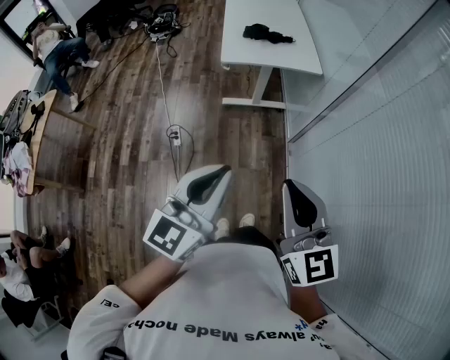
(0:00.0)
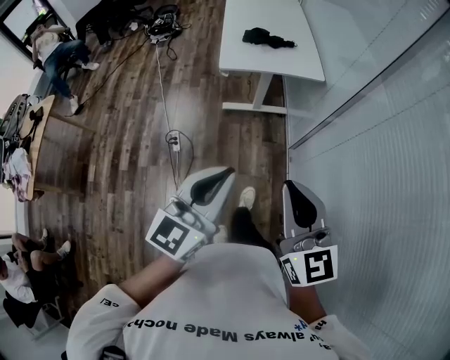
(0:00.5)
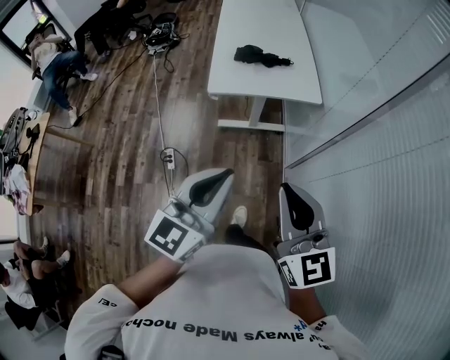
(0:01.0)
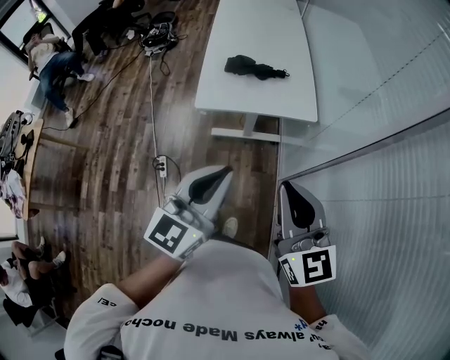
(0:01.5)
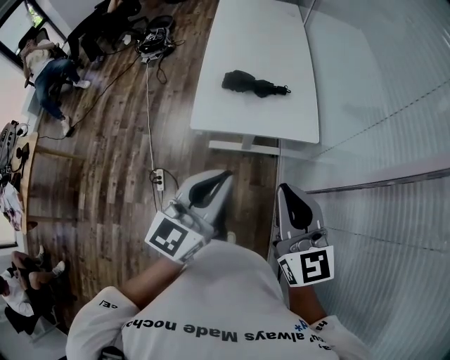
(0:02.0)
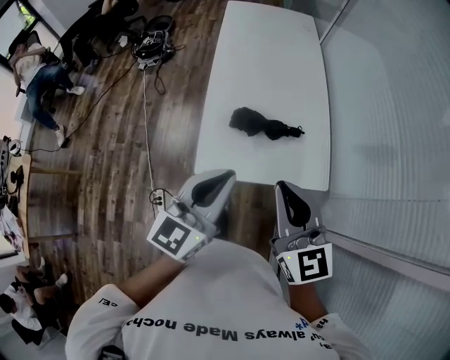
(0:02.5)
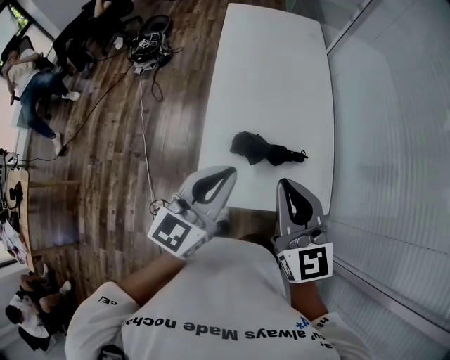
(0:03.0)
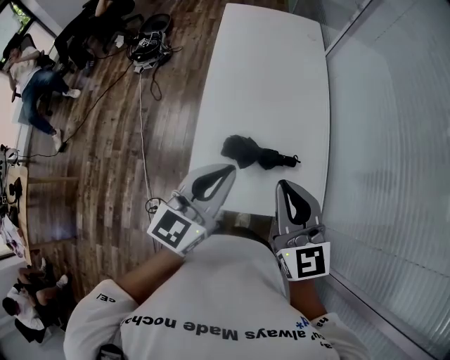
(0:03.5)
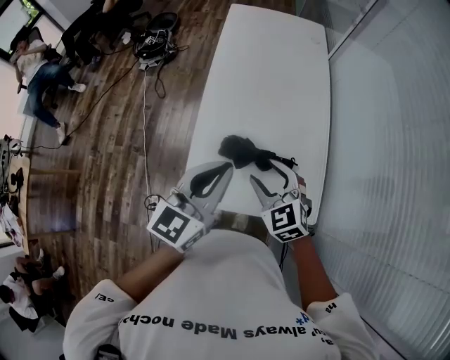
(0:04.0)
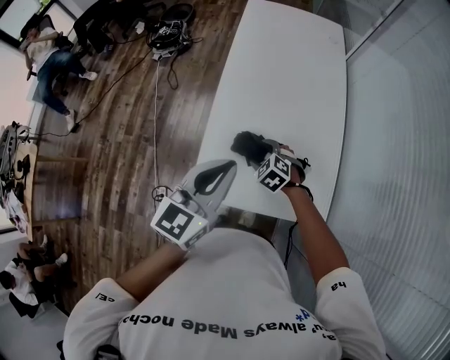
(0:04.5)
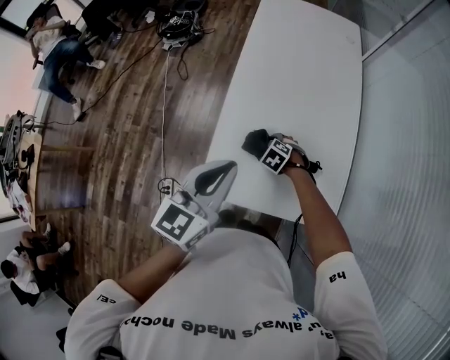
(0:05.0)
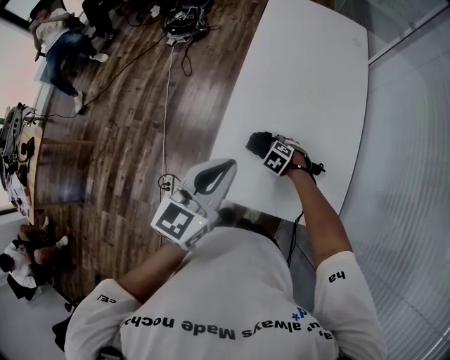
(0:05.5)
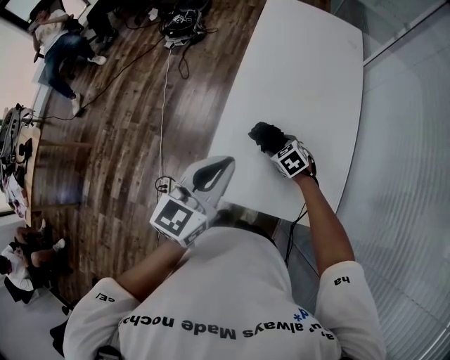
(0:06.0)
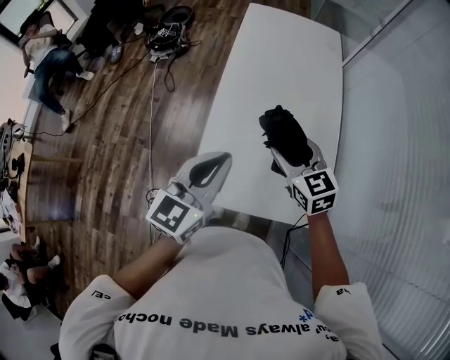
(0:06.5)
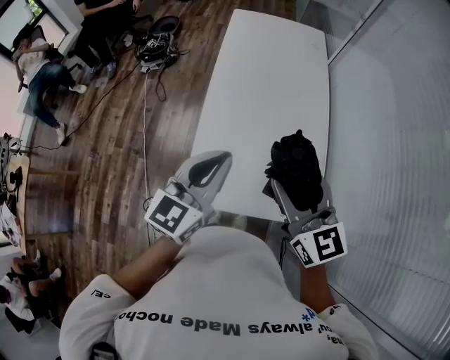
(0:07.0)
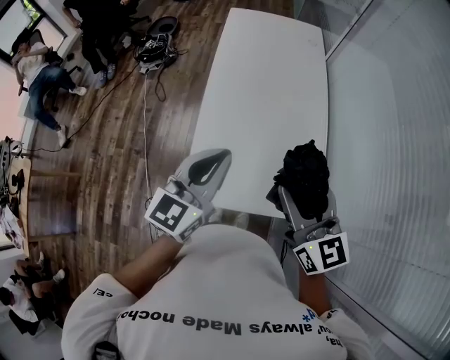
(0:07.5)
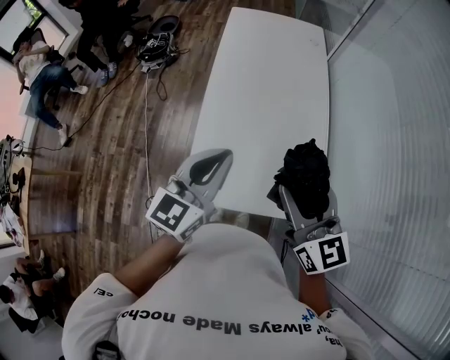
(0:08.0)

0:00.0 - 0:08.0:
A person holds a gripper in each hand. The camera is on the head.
0:00.0 - 0:02.0: Both grippers are carried forward, some 60 cm.
0:02.0 - 0:04.0: The two grippers travel together, forward, roughly 50 cm. The right gripper rotates about 40 degrees, and opens.
0:04.0 - 0:06.0: The right gripper heads downward, covering about 20 cm, and changes its angle by approximately 30 degrees. The left gripper ends up approximately 10 cm from where it was.
0:06.0 - 0:08.0: The left gripper moves to the right and upward, approximately 10 cm. Meanwhile the right gripper heads upward and backward, covering some 40 cm, and points its fingers some 50 degrees further upward.

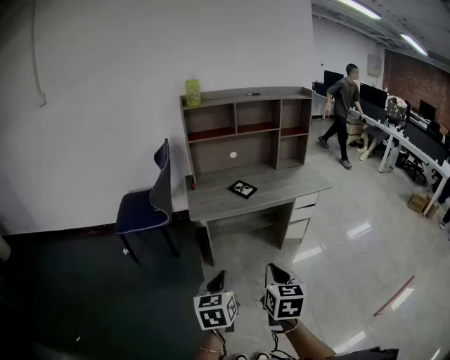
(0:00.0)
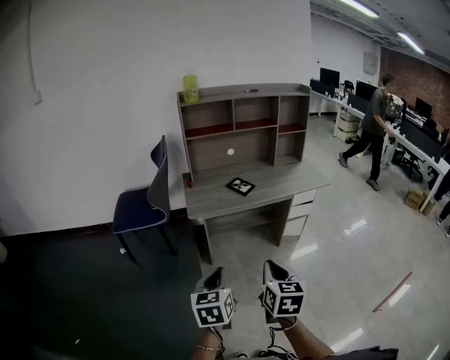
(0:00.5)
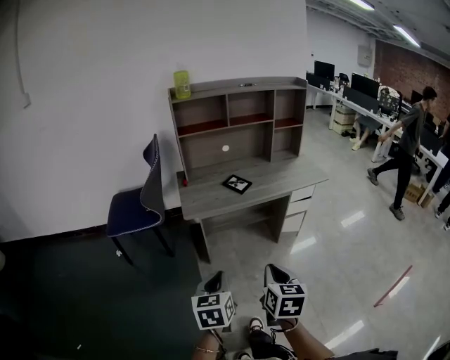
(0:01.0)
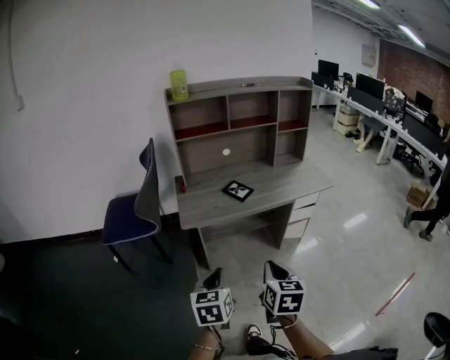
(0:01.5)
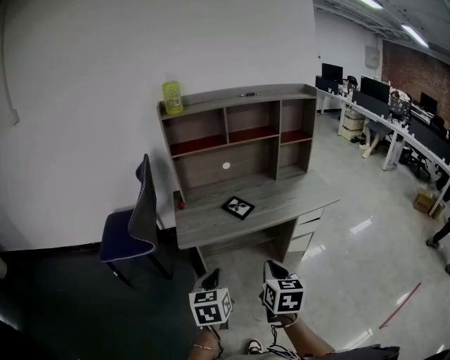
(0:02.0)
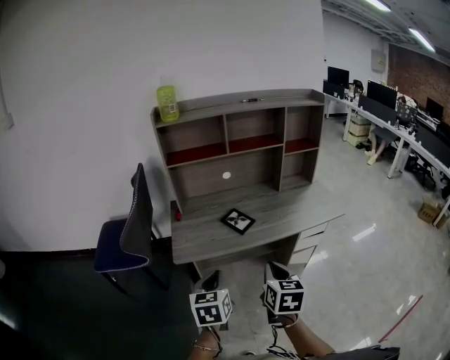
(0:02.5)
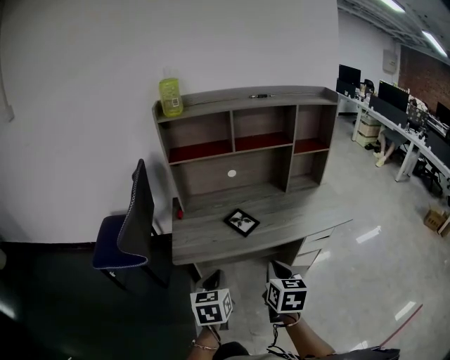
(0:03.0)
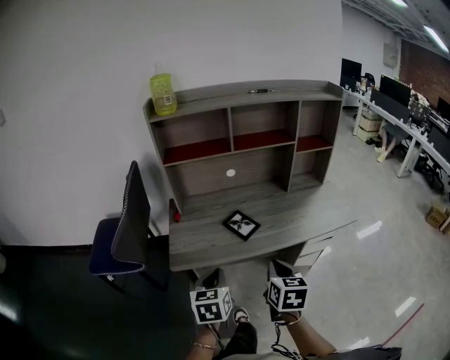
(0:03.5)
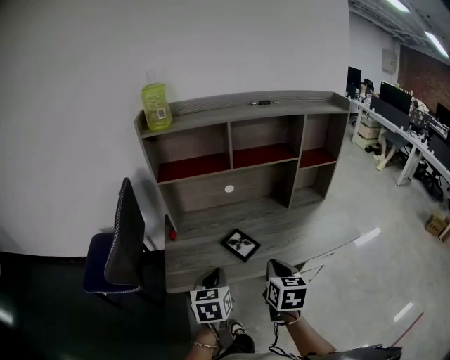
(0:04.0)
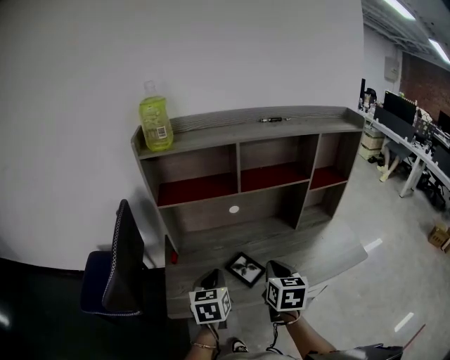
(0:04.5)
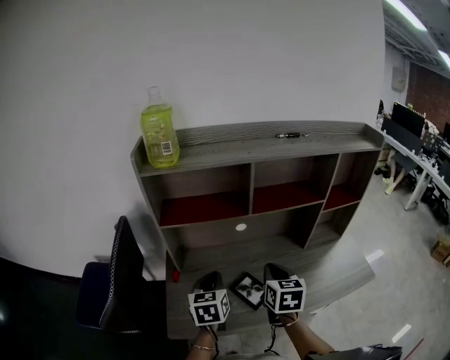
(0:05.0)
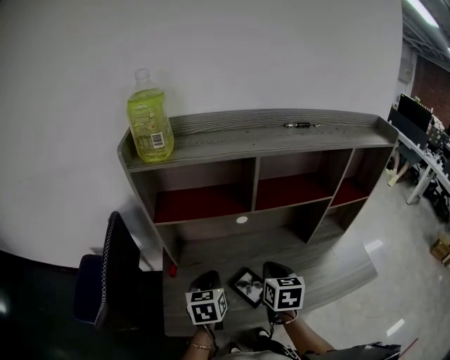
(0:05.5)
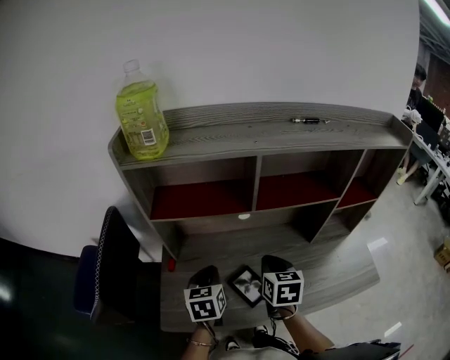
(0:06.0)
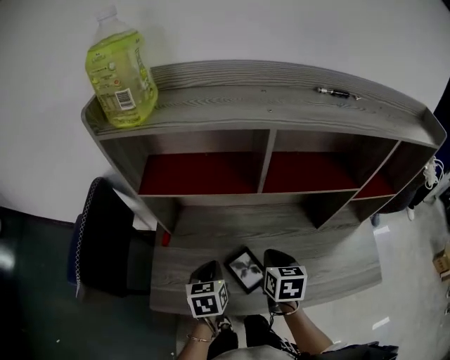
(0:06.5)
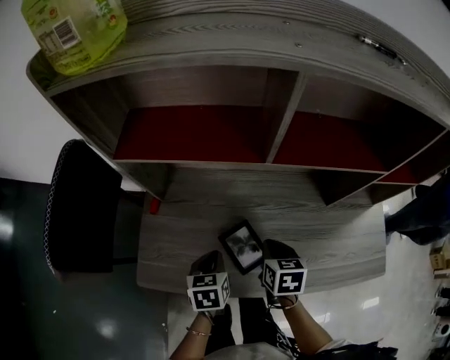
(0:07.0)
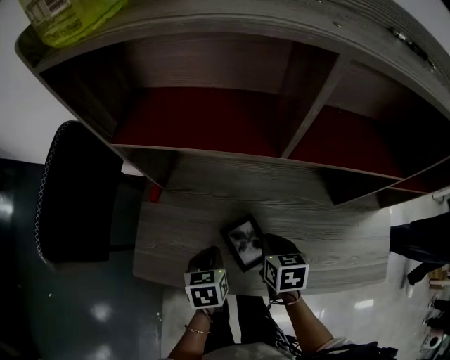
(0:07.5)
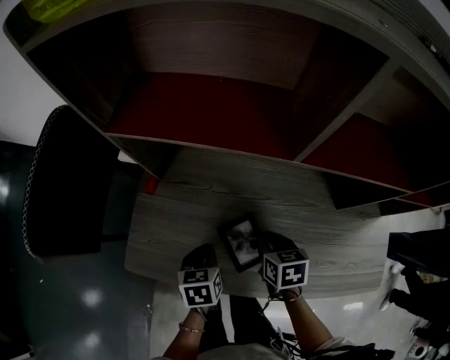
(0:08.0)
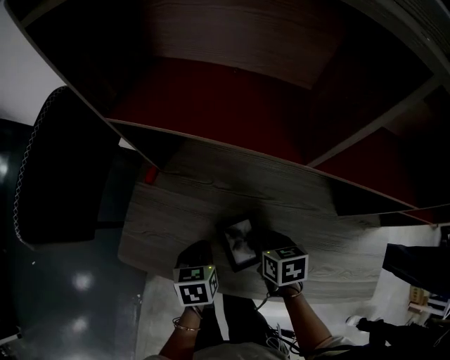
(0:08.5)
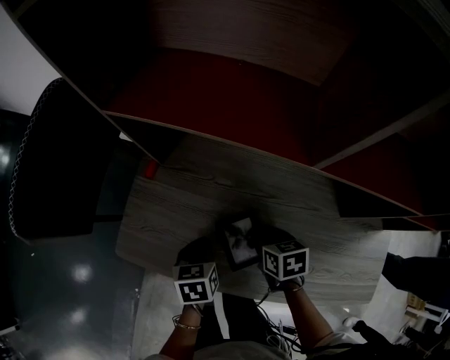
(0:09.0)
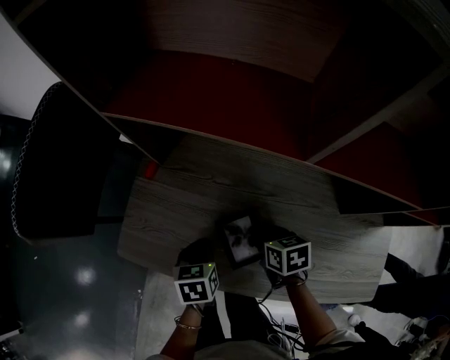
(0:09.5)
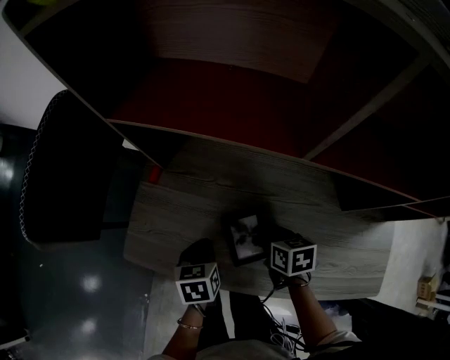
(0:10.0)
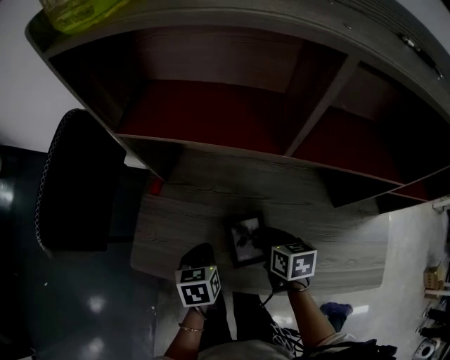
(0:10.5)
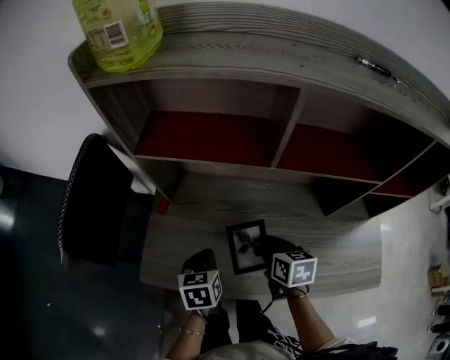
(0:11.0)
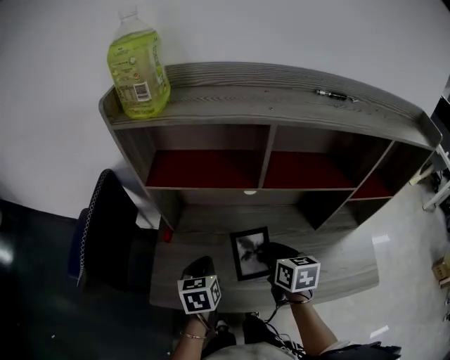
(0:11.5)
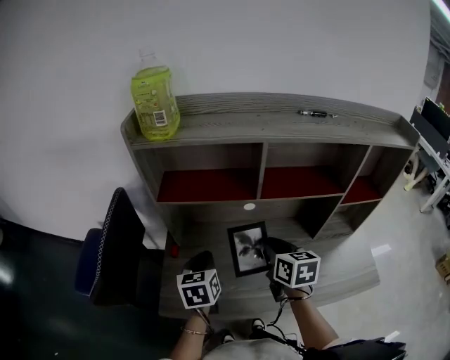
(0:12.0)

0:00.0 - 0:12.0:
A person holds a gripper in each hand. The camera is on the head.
0:00.0 - 0:02.0: Both grippers move forward, approximately 20 cm.
0:02.0 - 0:04.0: Both grippers travel together forward, roughly 25 cm.
0:04.0 - 0:06.0: Both grippers move forward, about 25 cm.
0:06.0 - 0:08.0: Both grippers travel together downward, some 20 cm. The left gripper turns by approximately 30 degrees, while the right gripper changes its angle by roughly 30 degrees.
0:08.0 - 0:10.0: There are only small adjustments of the grippers.
0:10.0 - 0:12.0: Both grippers move upward, about 25 cm. The left gripper turns by about 30 degrees. Meanwhile the right gripper swivels about 30 degrees.

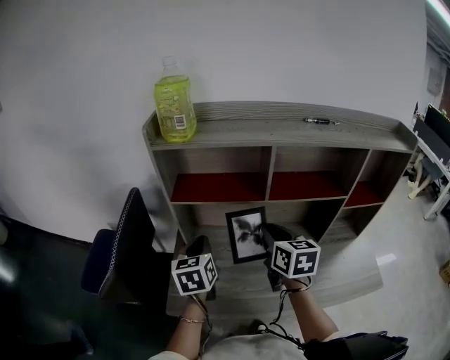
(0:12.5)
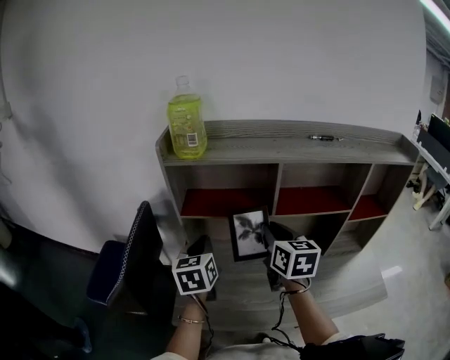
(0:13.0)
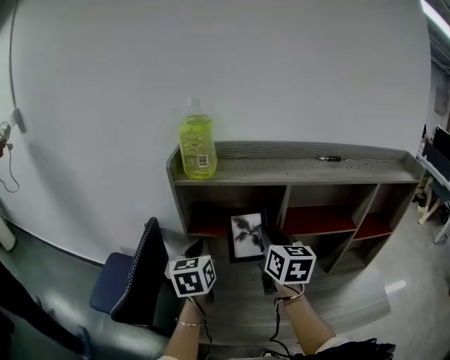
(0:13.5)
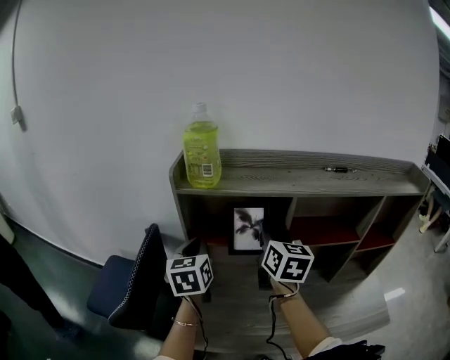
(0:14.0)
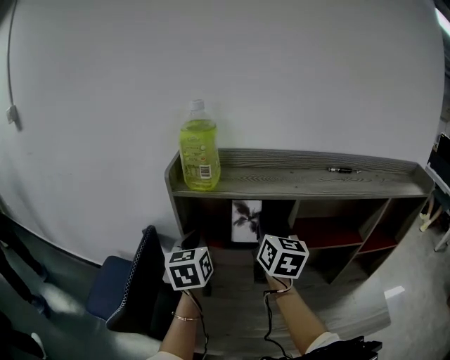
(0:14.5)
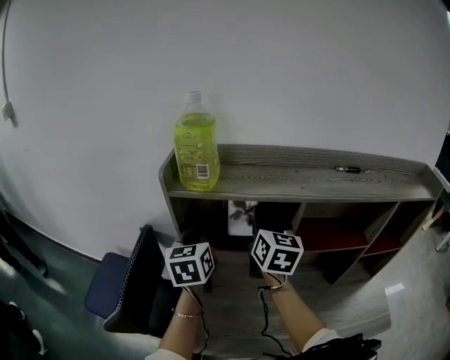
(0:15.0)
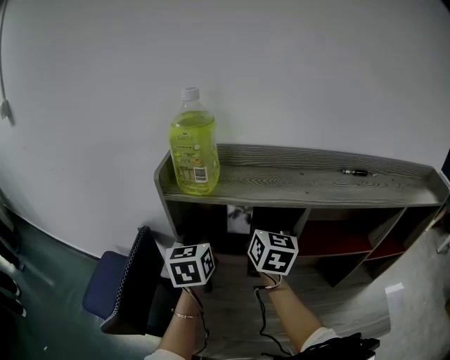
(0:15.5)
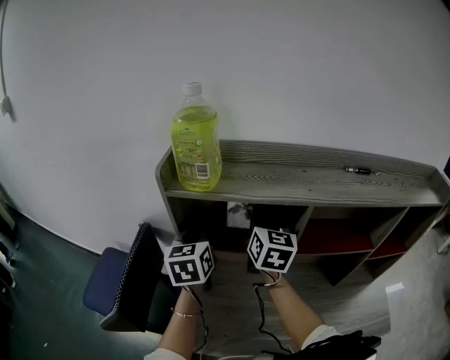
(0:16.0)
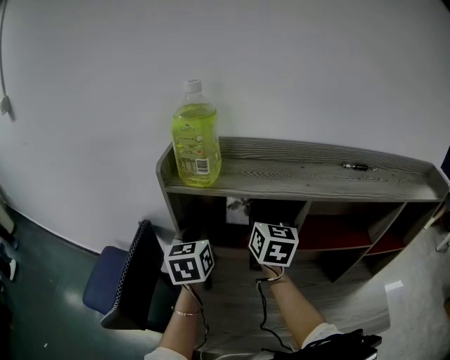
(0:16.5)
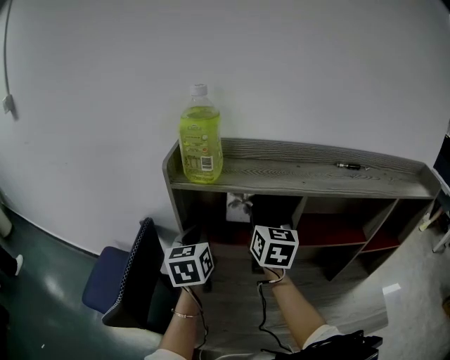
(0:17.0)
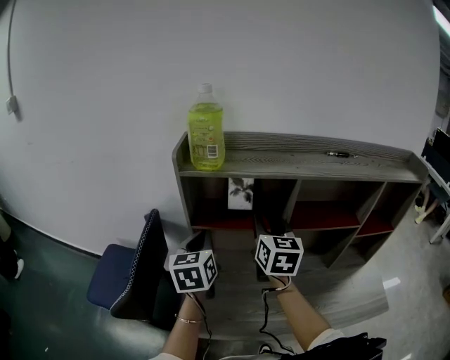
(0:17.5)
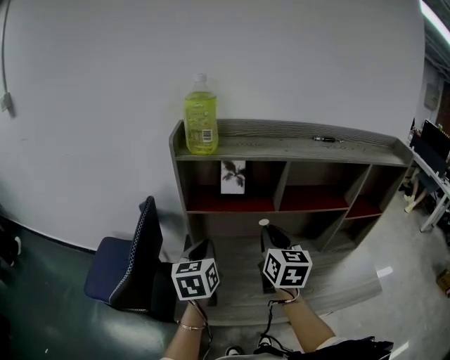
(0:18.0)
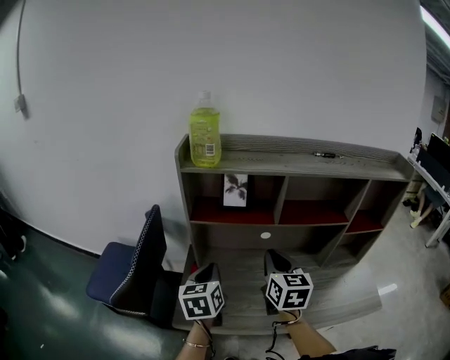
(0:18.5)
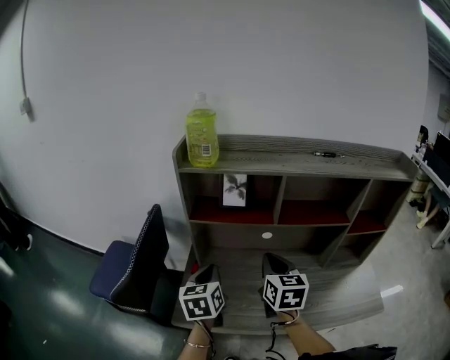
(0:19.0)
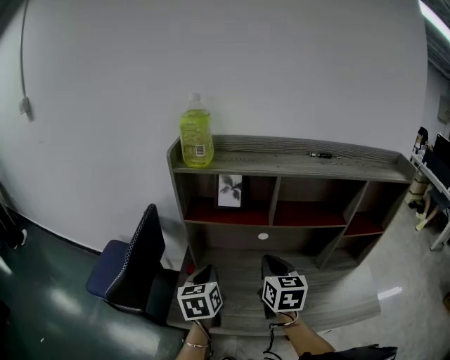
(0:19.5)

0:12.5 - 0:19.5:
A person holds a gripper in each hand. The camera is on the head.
0:12.5 - 0:14.5: The left gripper travels upward and forward by about 15 cm; the right gripper moves forward and upward, roughly 20 cm.
0:14.5 - 0:16.0: The right gripper goes some 5 cm forward.
0:16.0 - 0:17.5: Both grippers move backward, approximately 10 cm.
0:17.5 - 0:19.5: The right gripper heads backward, downward and to the right, covering some 15 cm, and closes; the left gripper moves backward and downward, about 15 cm.
